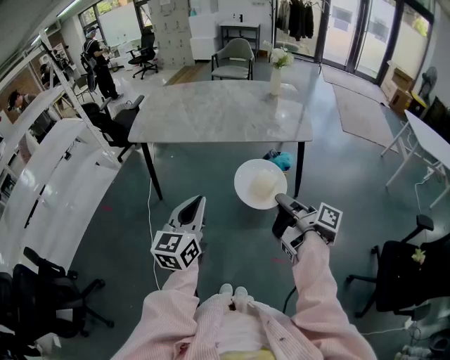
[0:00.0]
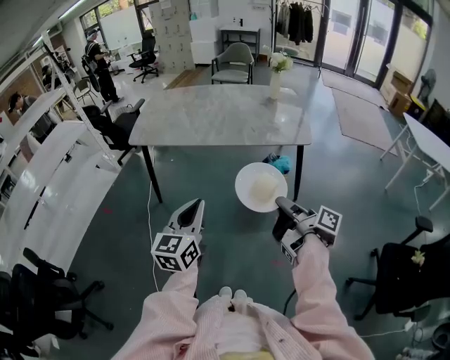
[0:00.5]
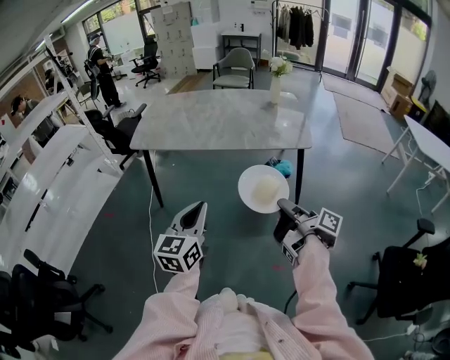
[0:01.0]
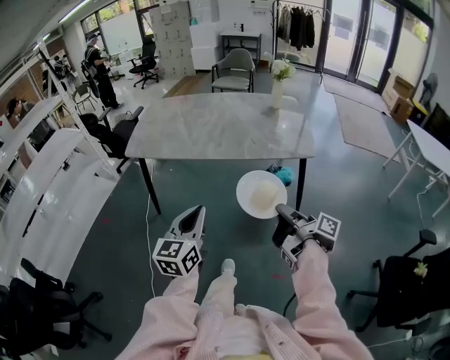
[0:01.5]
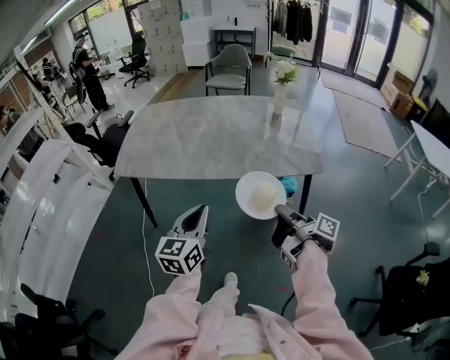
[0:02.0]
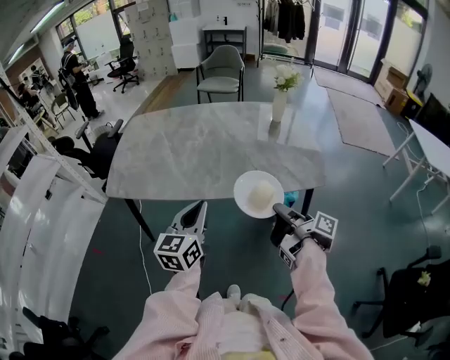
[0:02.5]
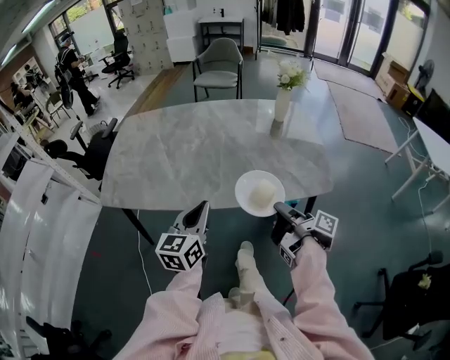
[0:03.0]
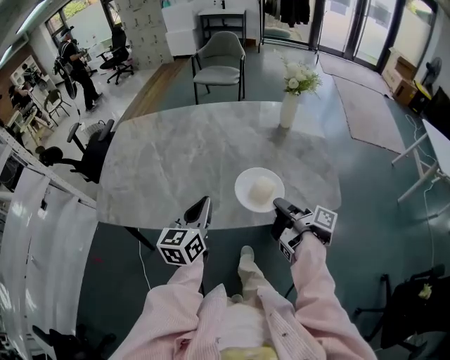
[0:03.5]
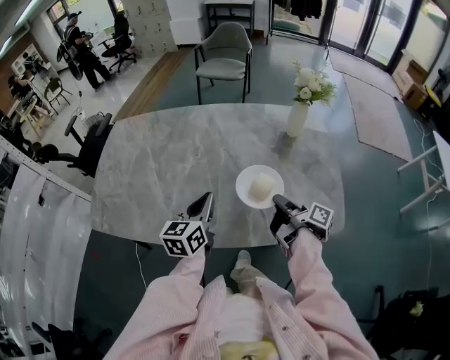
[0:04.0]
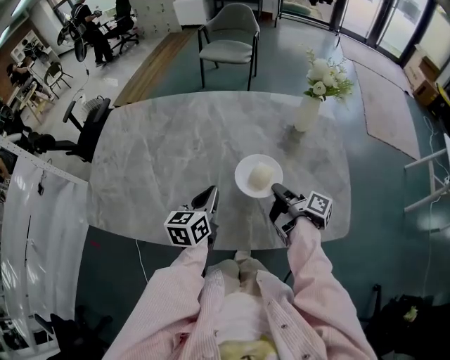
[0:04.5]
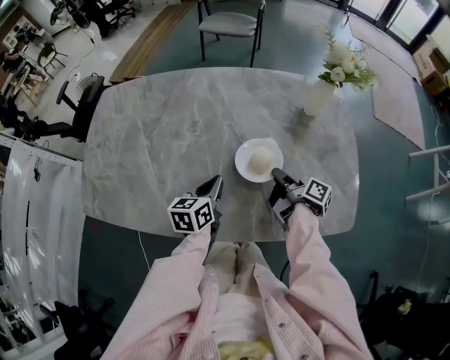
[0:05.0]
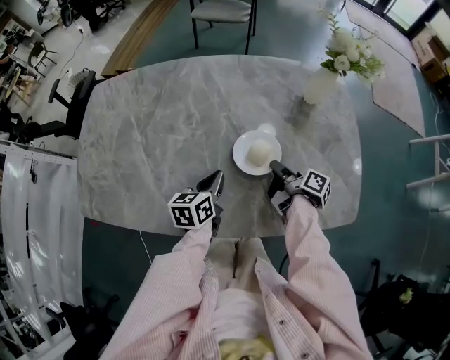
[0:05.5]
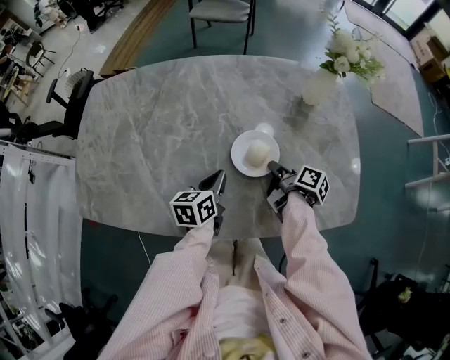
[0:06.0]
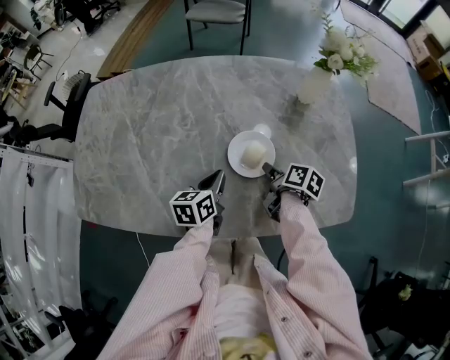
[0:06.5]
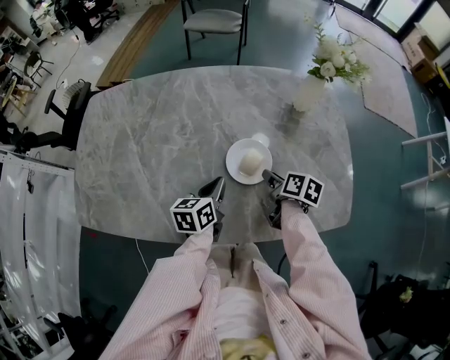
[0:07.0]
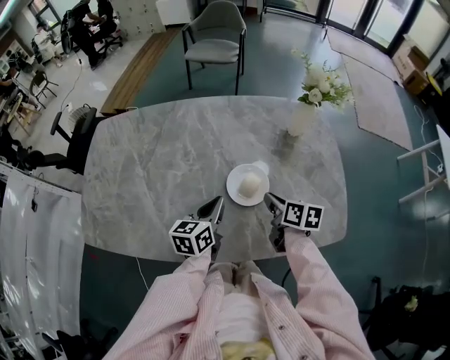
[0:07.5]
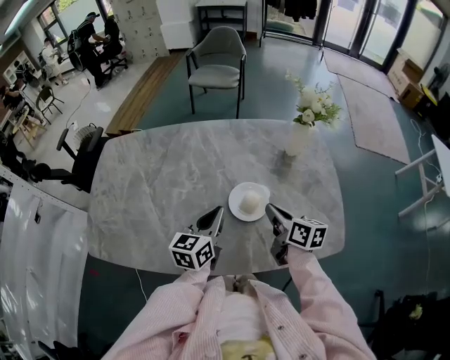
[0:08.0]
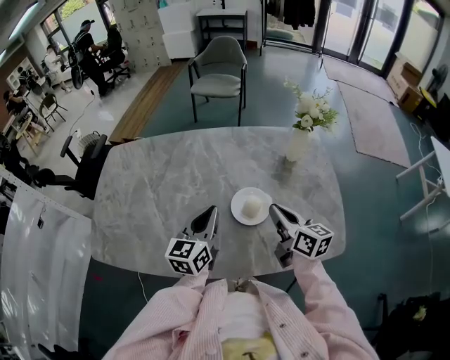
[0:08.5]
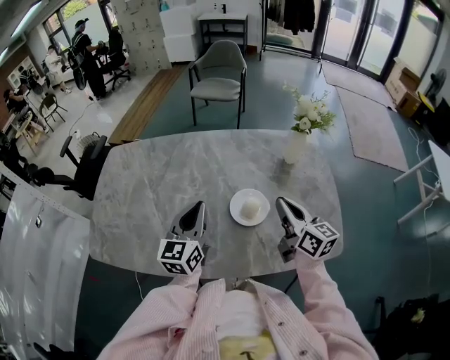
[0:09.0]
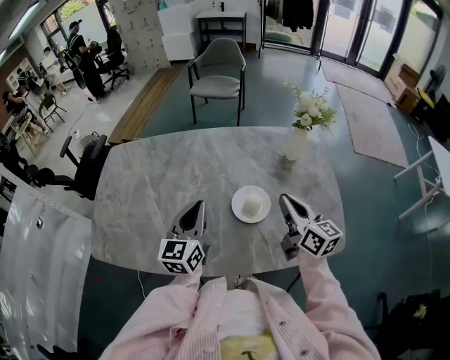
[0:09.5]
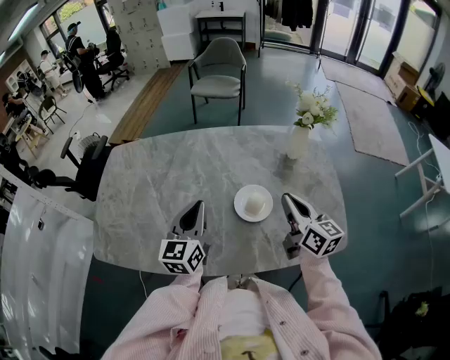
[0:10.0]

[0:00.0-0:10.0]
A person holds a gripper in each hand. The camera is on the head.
0:00.0 to 0:02.0: The left gripper changes place by some 25 cm.
0:02.0 to 0:04.0: The left gripper moves some 40 cm.
0:04.0 to 0:06.0: The left gripper travels downward by about 15 cm, and swivels approximately 20 degrees.
0:06.0 to 0:08.0: The left gripper travels upward by roughly 10 cm, and swivels roughly 20 degrees.
0:08.0 to 0:10.0: The left gripper moves some 10 cm.

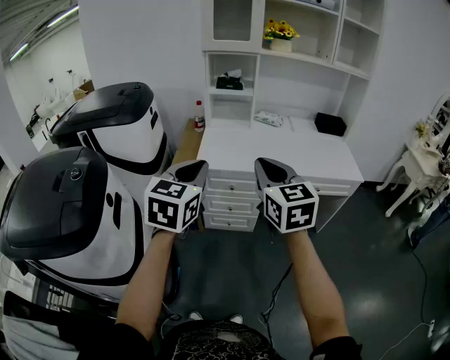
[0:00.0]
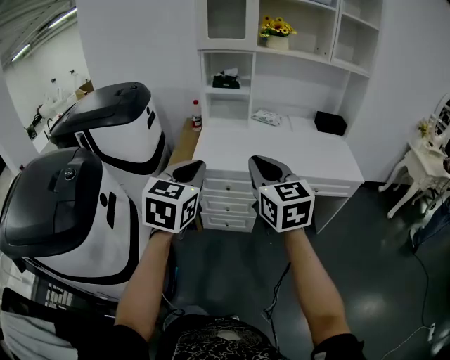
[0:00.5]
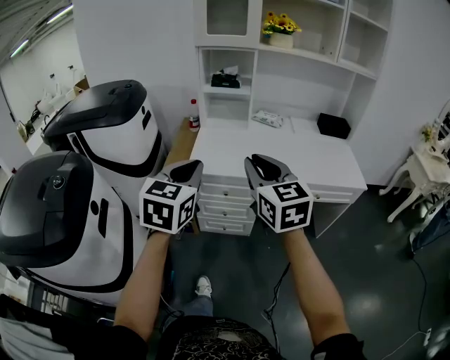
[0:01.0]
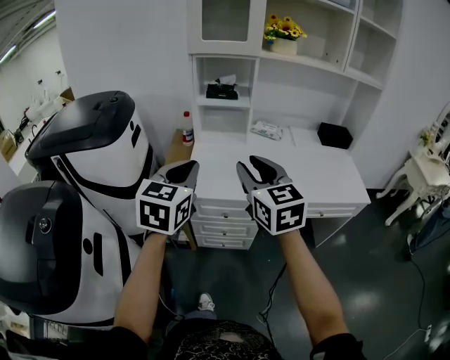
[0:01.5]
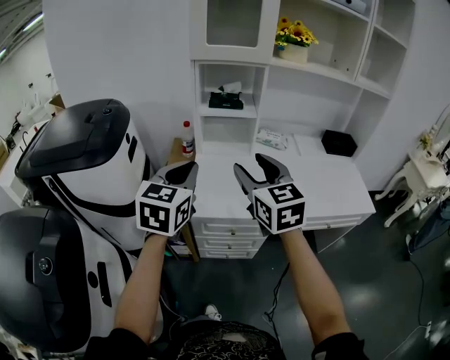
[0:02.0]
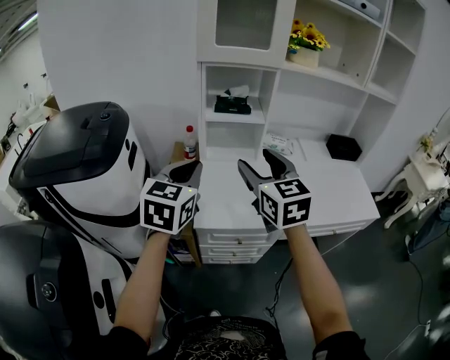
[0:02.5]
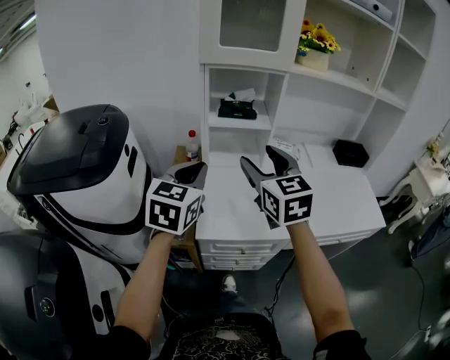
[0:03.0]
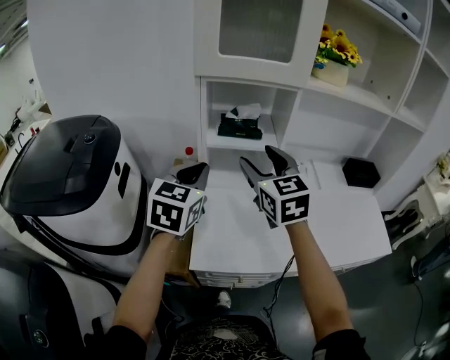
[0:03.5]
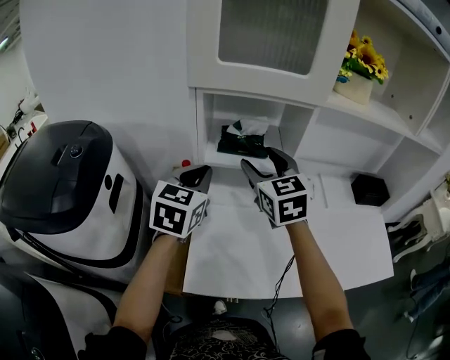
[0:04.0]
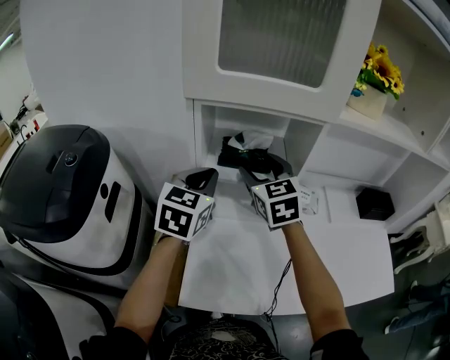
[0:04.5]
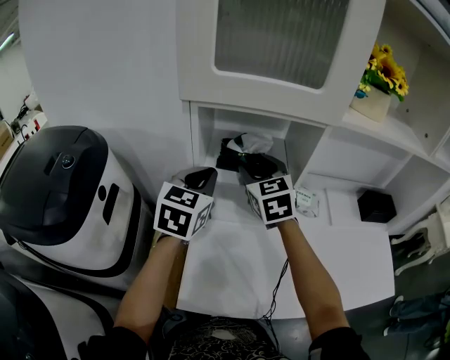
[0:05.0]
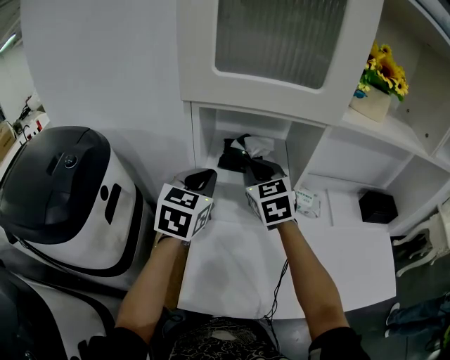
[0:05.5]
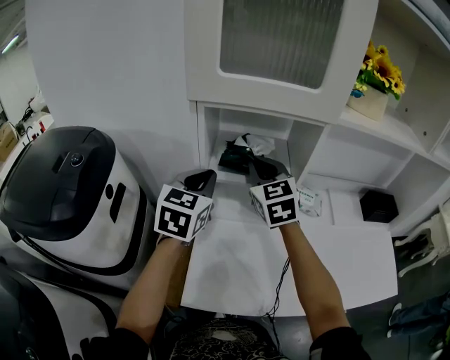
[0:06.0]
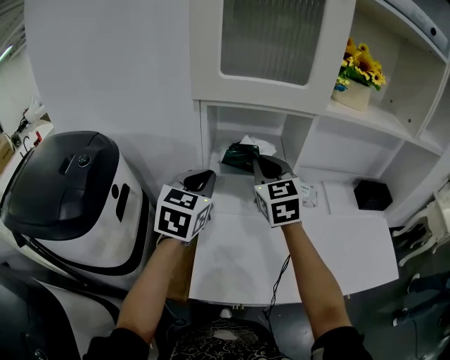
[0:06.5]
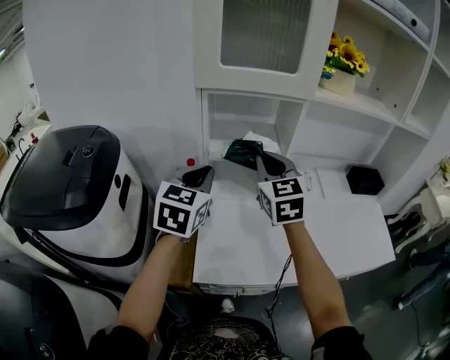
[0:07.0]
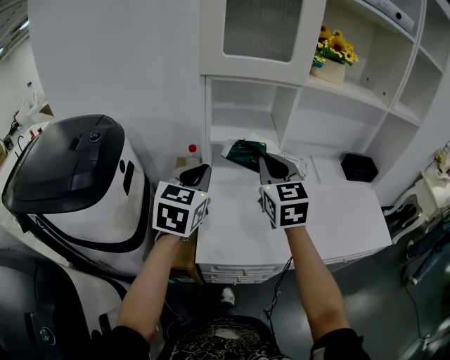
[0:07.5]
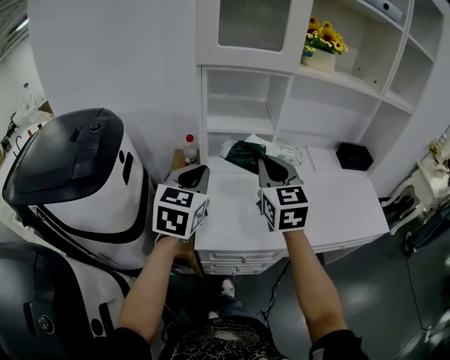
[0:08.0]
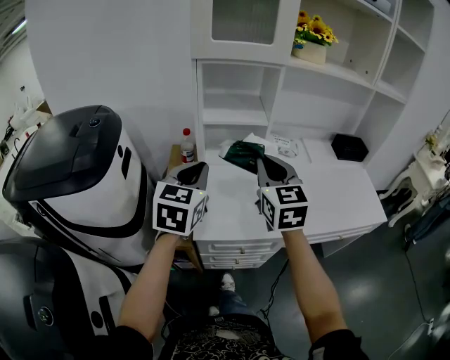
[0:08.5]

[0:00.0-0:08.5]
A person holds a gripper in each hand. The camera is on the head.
0:00.0 to 0:02.0: Both grippers travel together forward, approximately 30 cm. The right gripper opens its fingers.
0:02.0 to 0:04.0: The grippers both shift forward by some 35 cm.
0:04.0 to 0:06.5: The right gripper travels forward and back again, approximately 10 cm each way, and closes its fingers.
0:06.5 to 0:08.5: The two grippers go approximately 20 cm backward.

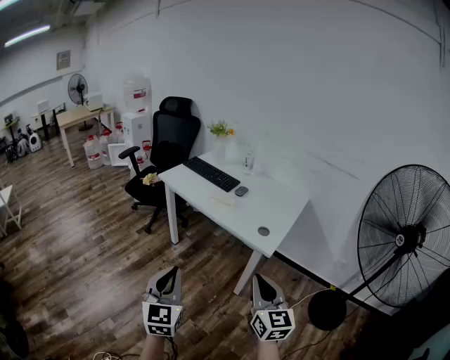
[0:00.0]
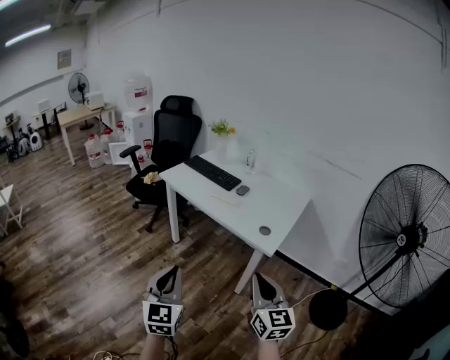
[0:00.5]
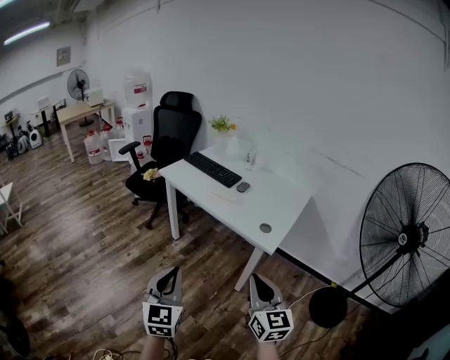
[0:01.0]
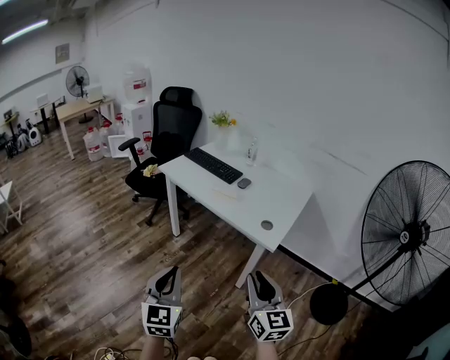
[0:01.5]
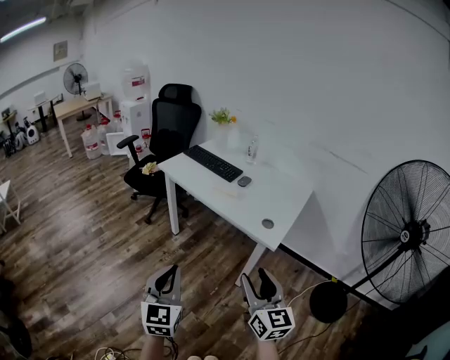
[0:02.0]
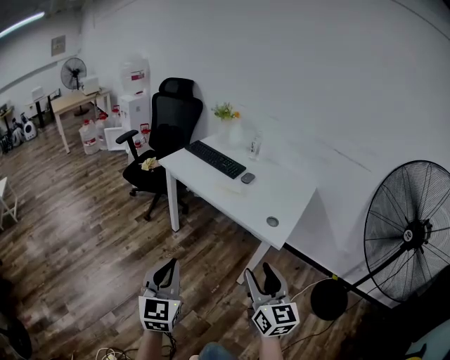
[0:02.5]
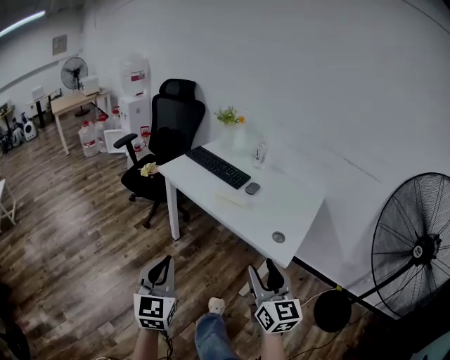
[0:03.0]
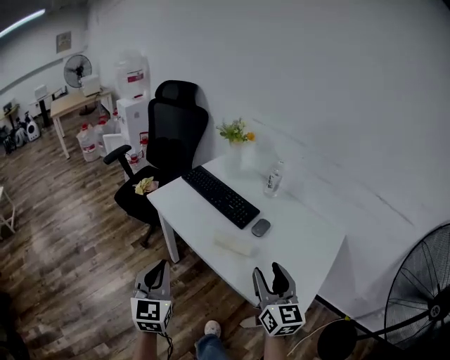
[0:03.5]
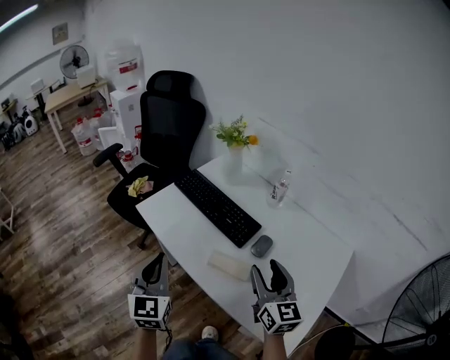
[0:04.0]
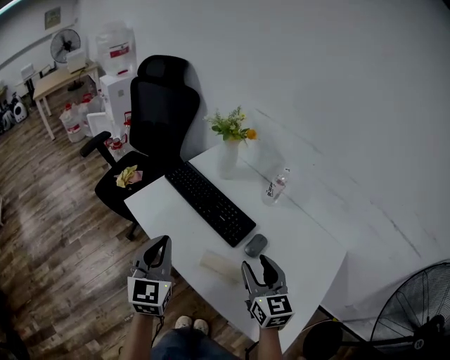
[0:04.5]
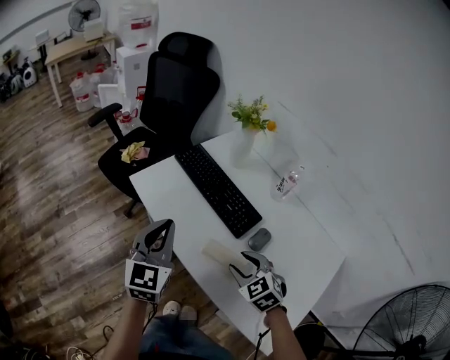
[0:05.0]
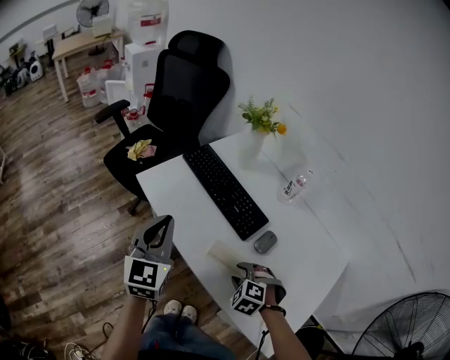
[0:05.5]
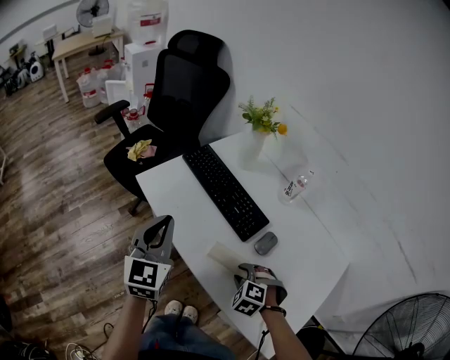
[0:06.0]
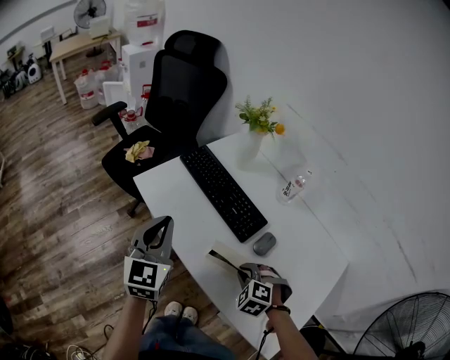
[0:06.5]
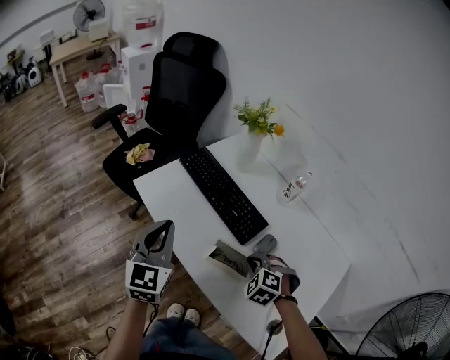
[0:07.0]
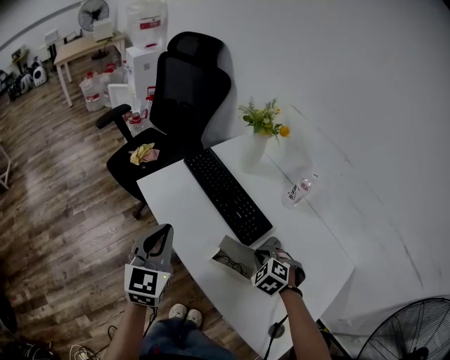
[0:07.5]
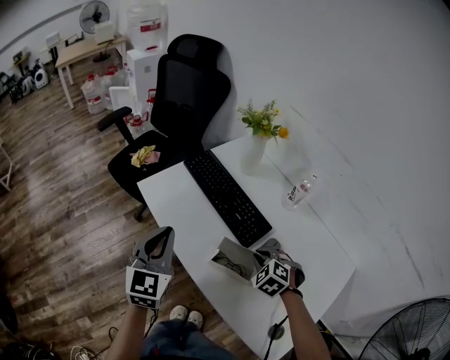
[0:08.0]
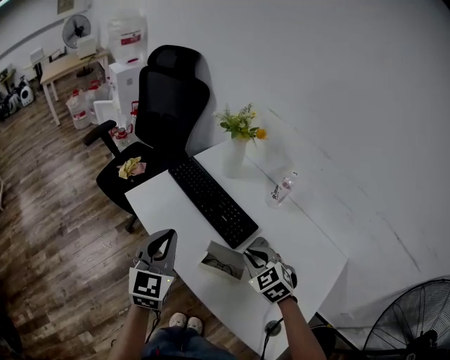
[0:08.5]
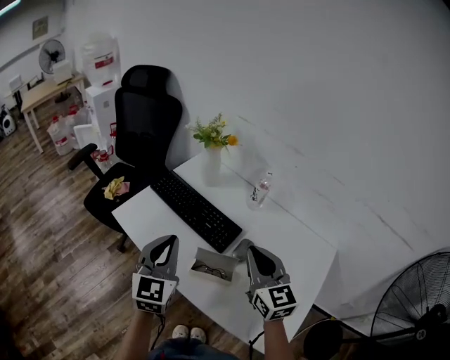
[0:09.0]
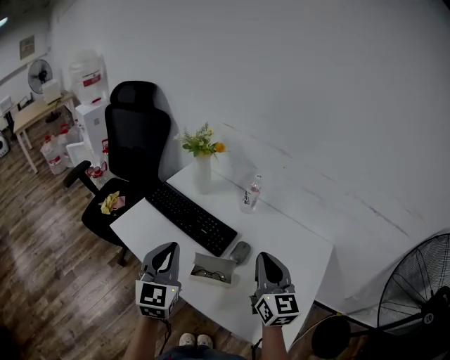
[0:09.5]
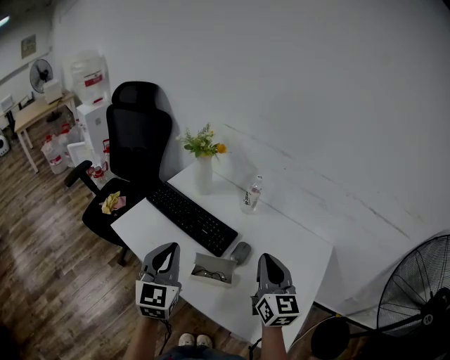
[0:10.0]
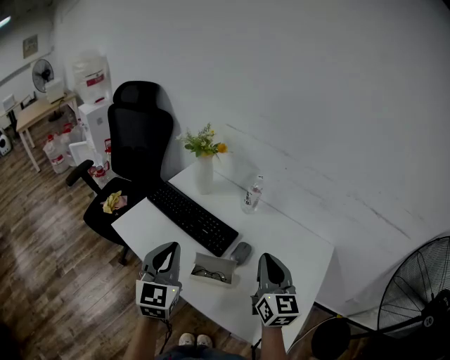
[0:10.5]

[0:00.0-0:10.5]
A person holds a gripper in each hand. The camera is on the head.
0:00.0 to 0:02.0: The right gripper opens its fingers.
0:02.0 to 0:04.0: The two grippers travel together, forward, about 60 cm.
0:04.0 to 0:06.5: The right gripper travels downward by approximately 20 cm, tilts its fingers roughly 60 degrees downward, and closes its fingers, while the left gripper is displaced forward by roughly 10 cm.
0:06.5 to 0:08.5: The right gripper heads upward and forward, covering about 10 cm, and changes its angle by some 30 degrees.
0:08.5 to 0:10.5: The left gripper is displaced to the right by some 5 cm, while the right gripper heads upward, to the right and backward, covering roughly 15 cm, and points its fingers about 40 degrees further upward.
